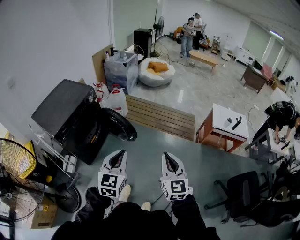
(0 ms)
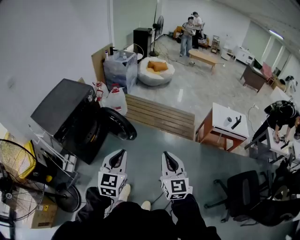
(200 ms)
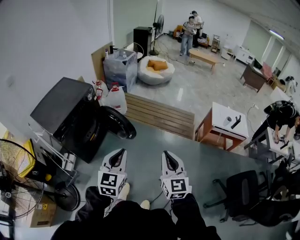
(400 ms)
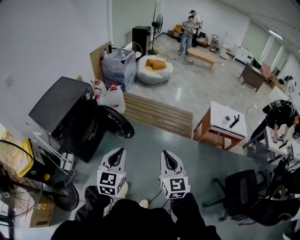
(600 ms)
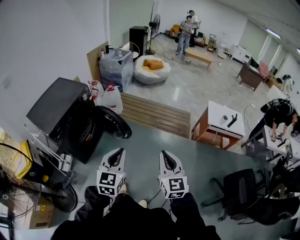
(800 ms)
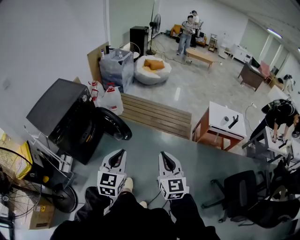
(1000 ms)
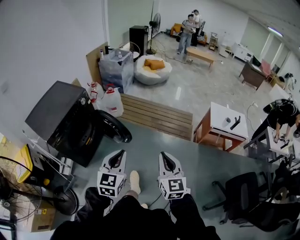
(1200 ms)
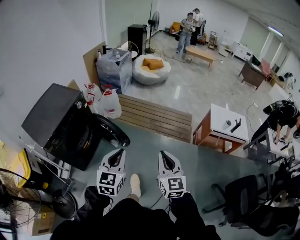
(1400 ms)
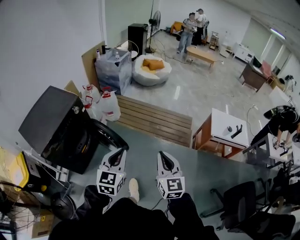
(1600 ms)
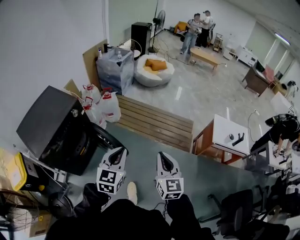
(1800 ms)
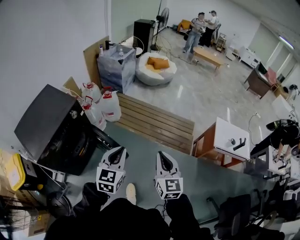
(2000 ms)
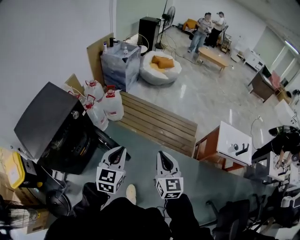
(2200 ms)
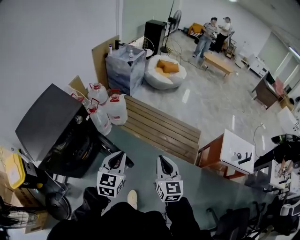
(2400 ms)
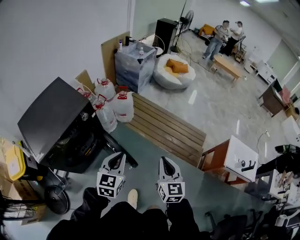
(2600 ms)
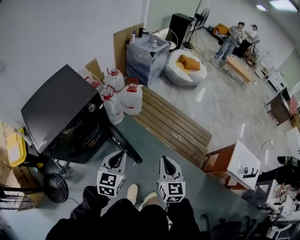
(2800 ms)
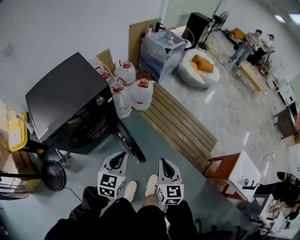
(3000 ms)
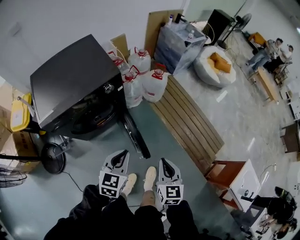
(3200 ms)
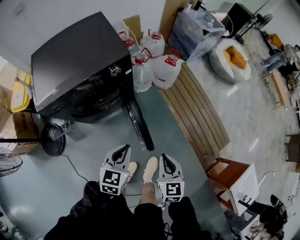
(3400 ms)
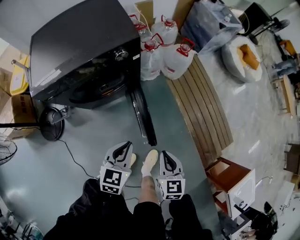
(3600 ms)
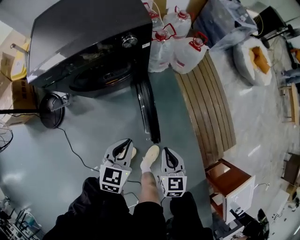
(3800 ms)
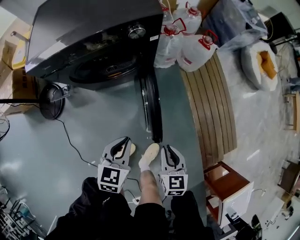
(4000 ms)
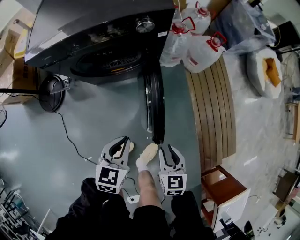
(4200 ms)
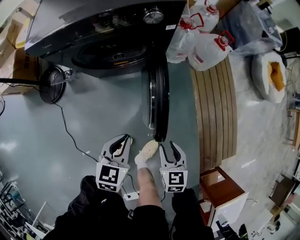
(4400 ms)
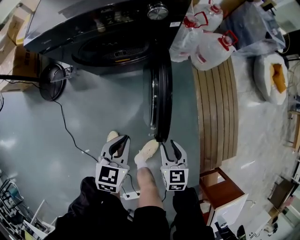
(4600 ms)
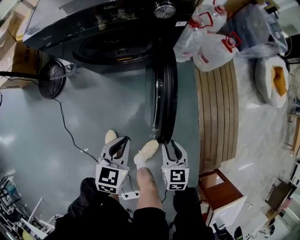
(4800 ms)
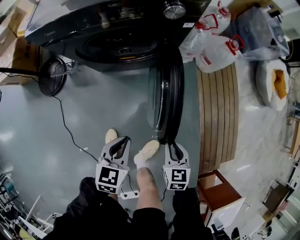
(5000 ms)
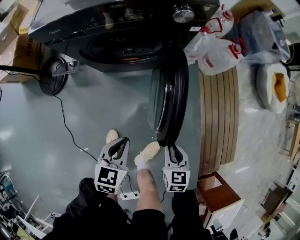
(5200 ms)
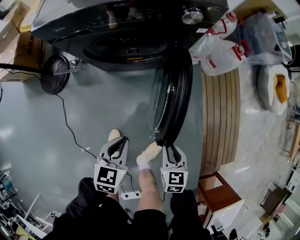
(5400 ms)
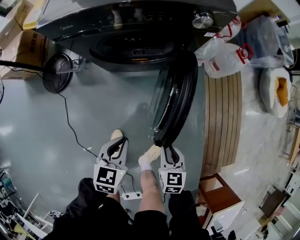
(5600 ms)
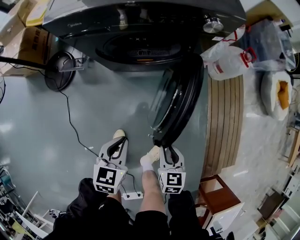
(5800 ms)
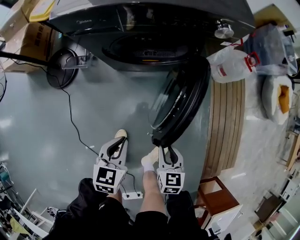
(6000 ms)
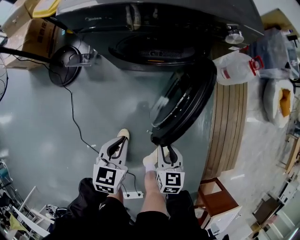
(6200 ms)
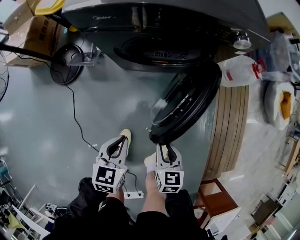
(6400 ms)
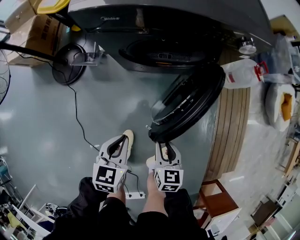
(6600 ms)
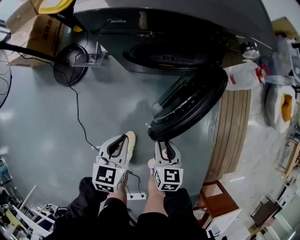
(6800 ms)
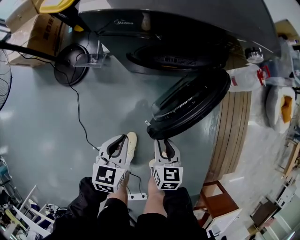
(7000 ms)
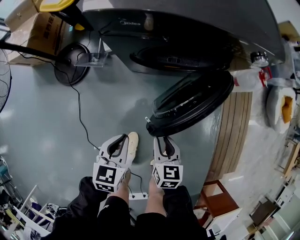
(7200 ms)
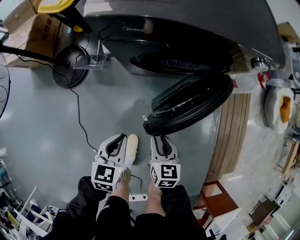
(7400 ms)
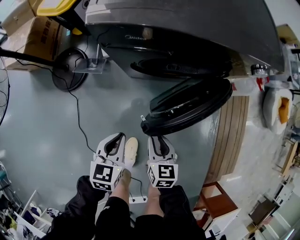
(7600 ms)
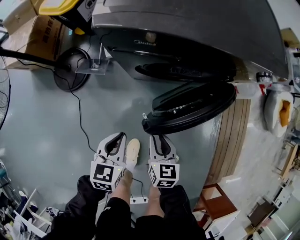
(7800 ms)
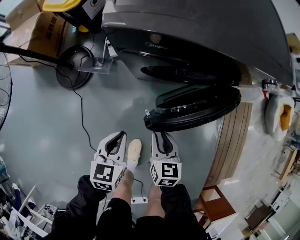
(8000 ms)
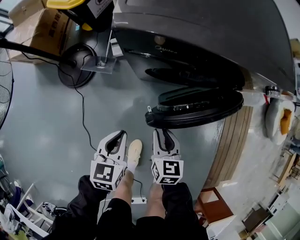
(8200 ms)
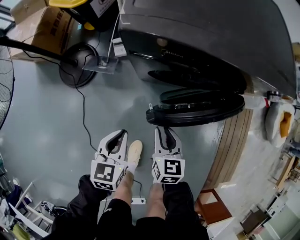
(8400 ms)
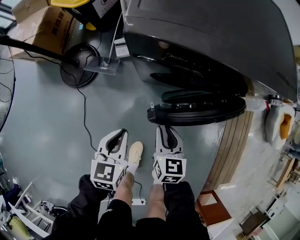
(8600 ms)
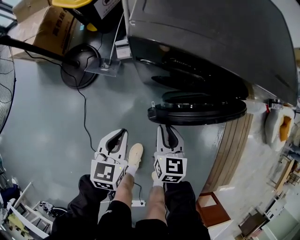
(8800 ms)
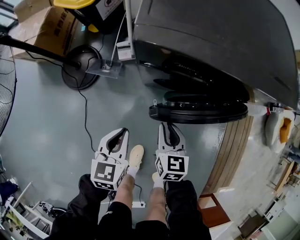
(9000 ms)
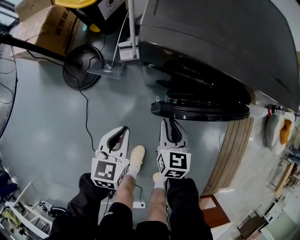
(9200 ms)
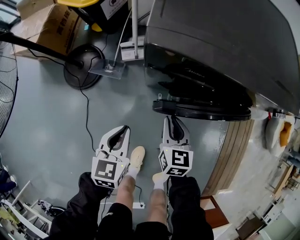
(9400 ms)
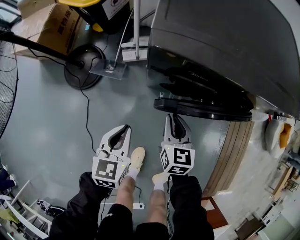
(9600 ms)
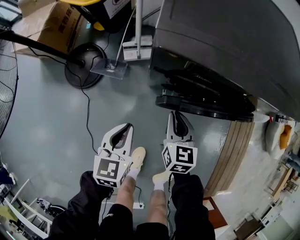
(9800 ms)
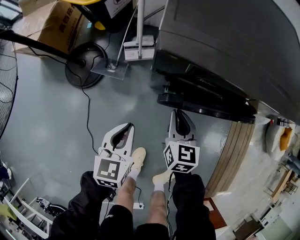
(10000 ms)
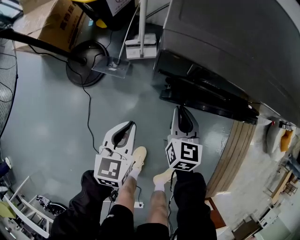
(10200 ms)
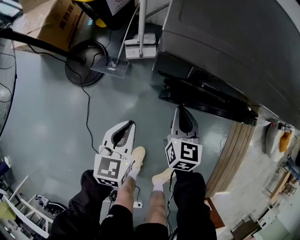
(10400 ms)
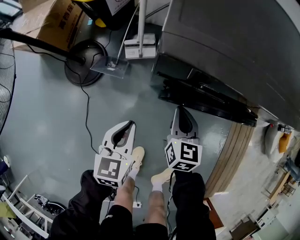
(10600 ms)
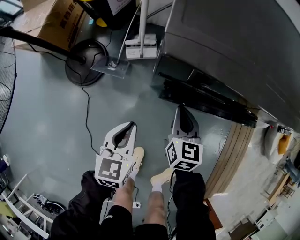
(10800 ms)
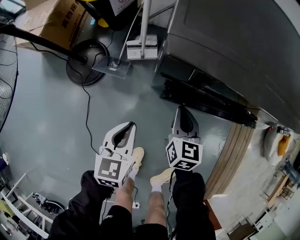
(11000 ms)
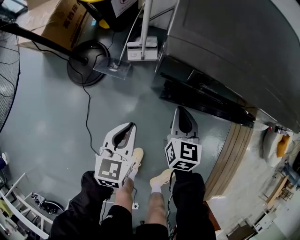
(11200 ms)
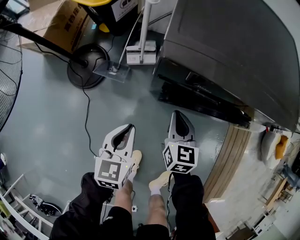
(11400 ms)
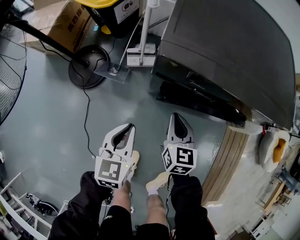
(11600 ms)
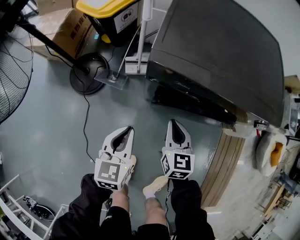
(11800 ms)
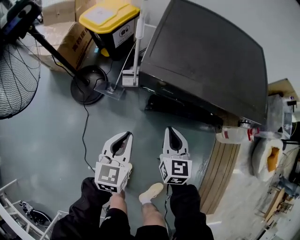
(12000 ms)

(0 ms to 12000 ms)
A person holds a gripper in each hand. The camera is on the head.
0 ms - 1600 ms: Both grippers move forward, about 20 cm.
1600 ms - 3000 ms: The two grippers go about 35 cm forward, to the left and downward. The left gripper swivels roughly 30 degrees. The right gripper changes its angle by some 20 degrees.
3000 ms - 4400 ms: Both grippers travel together downward, approximately 35 cm. The left gripper rotates approximately 40 degrees; the right gripper turns by roughly 40 degrees, and opens.
4400 ms - 6000 ms: The grippers both shift to the left by approximately 15 cm.
6000 ms - 7600 ms: Both grippers travel together to the left and forward, some 20 cm.
7600 ms - 9000 ms: The left gripper heads to the left and forward, covering approximately 10 cm. Meanwhile the right gripper is displaced forward and to the left by some 15 cm.
9000 ms - 10400 ms: The left gripper is displaced forward by some 5 cm, while the right gripper moves forward, about 10 cm.
10400 ms - 12000 ms: The two grippers go some 15 cm upward.

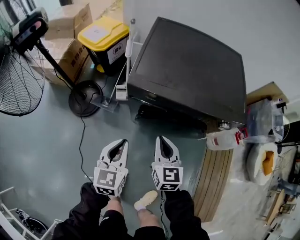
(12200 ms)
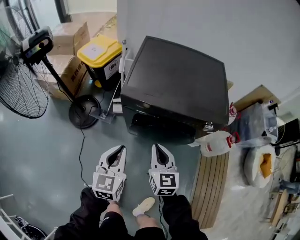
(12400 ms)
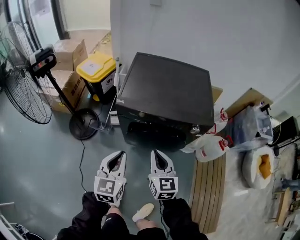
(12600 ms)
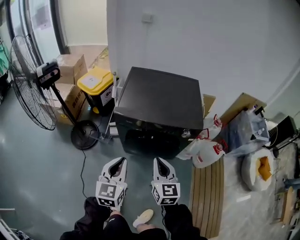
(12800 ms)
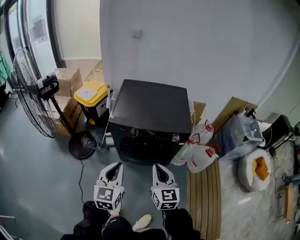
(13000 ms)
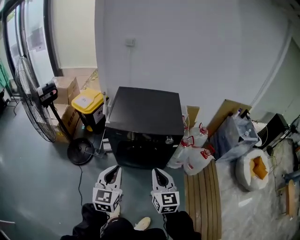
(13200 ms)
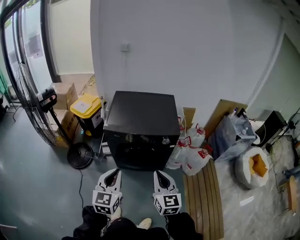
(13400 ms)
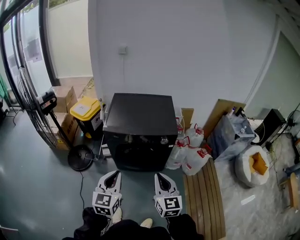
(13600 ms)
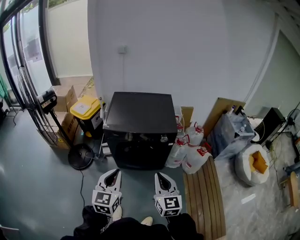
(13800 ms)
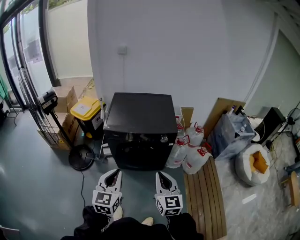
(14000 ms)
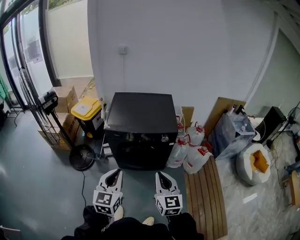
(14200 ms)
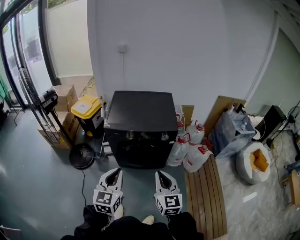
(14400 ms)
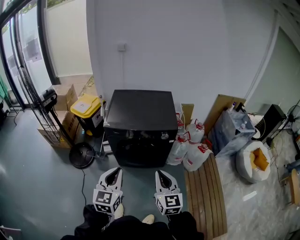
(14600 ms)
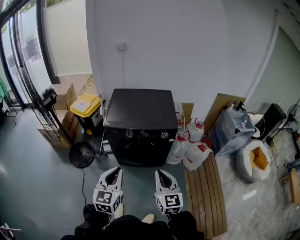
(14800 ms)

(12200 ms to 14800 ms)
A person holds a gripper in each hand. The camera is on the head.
12200 ms - 13400 ms: The grippers both shift upward, backward and to the right by approximately 40 cm.
13400 ms - 14800 ms: The grippers make only small movements.

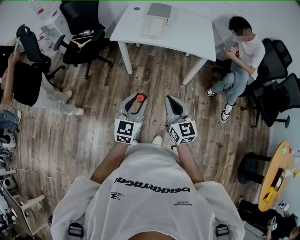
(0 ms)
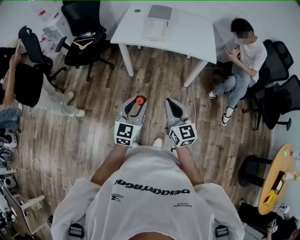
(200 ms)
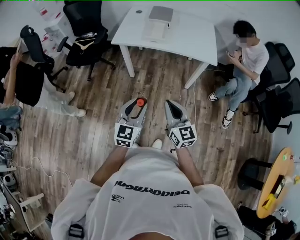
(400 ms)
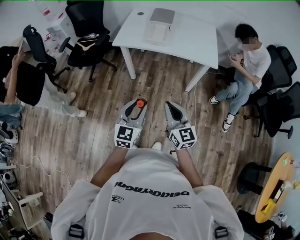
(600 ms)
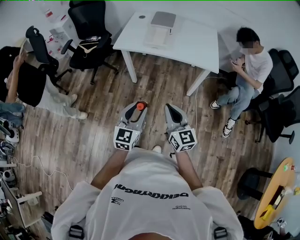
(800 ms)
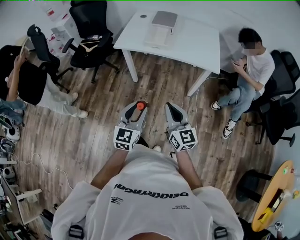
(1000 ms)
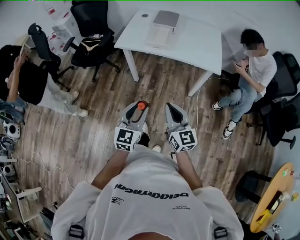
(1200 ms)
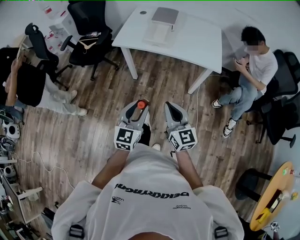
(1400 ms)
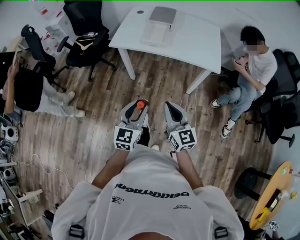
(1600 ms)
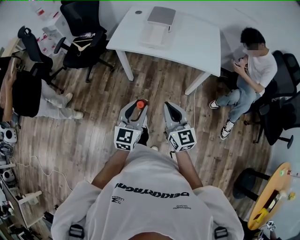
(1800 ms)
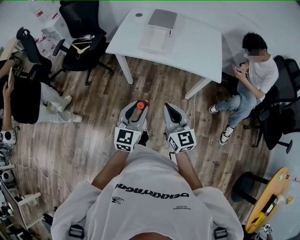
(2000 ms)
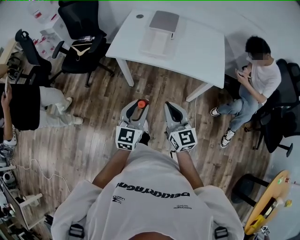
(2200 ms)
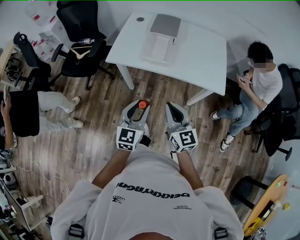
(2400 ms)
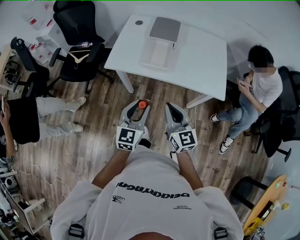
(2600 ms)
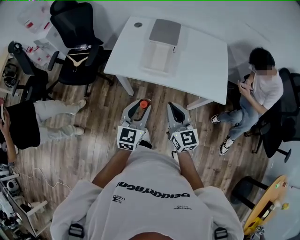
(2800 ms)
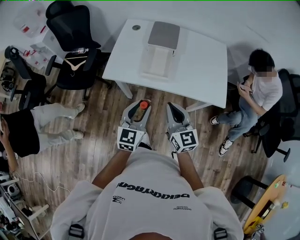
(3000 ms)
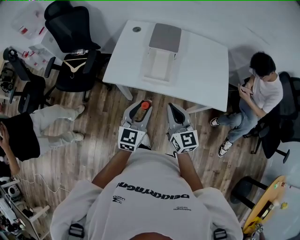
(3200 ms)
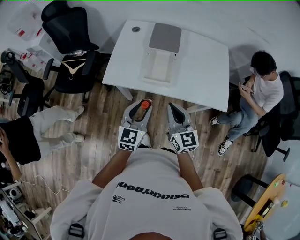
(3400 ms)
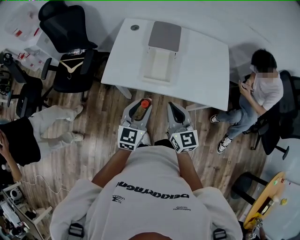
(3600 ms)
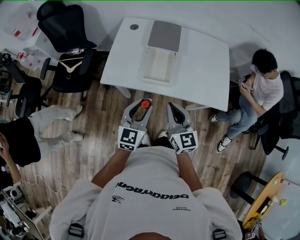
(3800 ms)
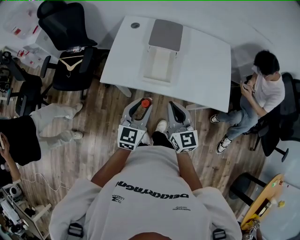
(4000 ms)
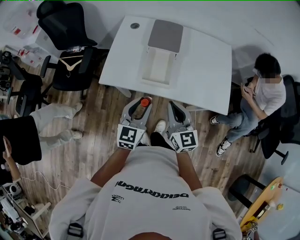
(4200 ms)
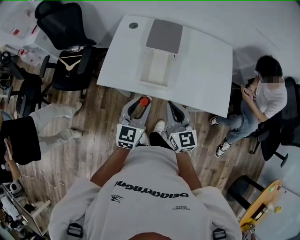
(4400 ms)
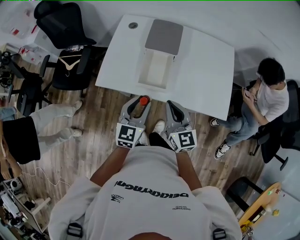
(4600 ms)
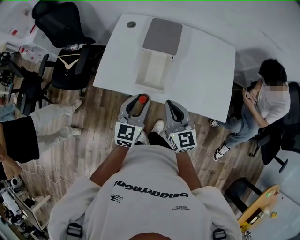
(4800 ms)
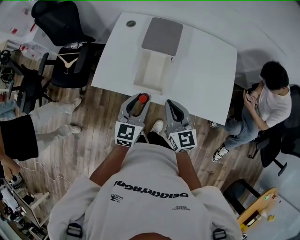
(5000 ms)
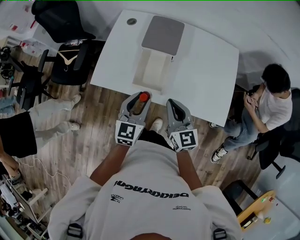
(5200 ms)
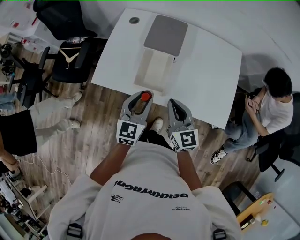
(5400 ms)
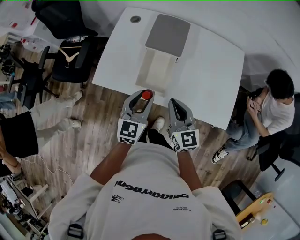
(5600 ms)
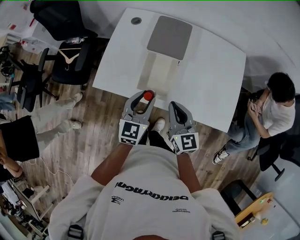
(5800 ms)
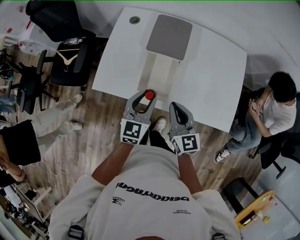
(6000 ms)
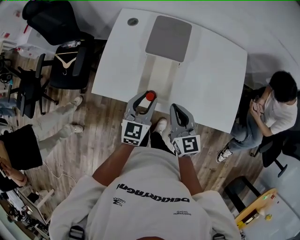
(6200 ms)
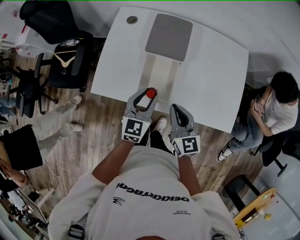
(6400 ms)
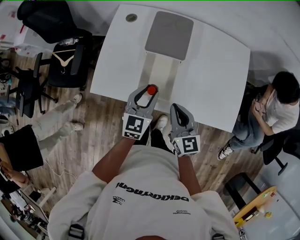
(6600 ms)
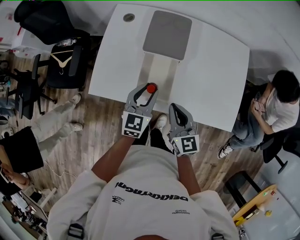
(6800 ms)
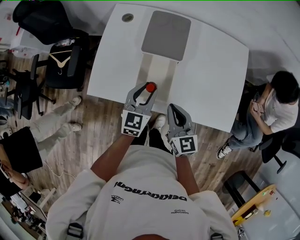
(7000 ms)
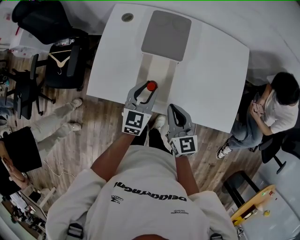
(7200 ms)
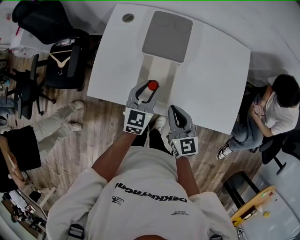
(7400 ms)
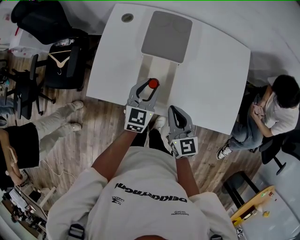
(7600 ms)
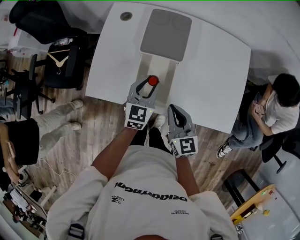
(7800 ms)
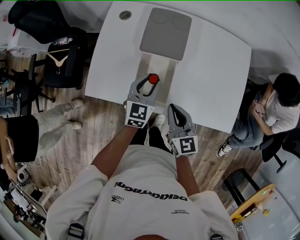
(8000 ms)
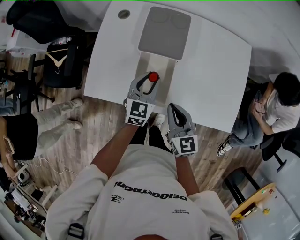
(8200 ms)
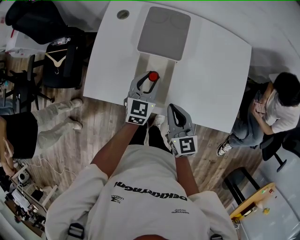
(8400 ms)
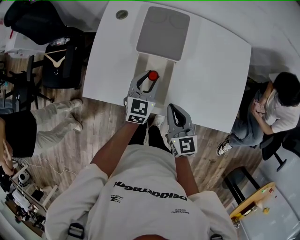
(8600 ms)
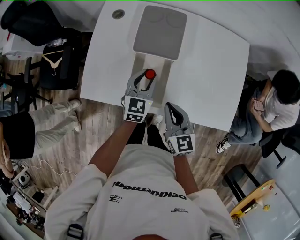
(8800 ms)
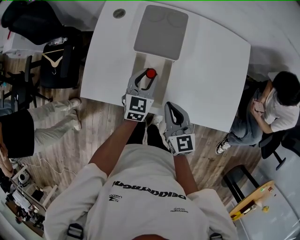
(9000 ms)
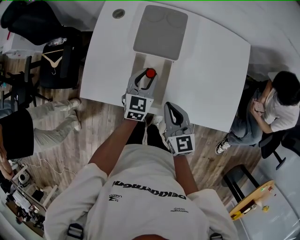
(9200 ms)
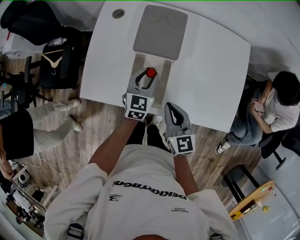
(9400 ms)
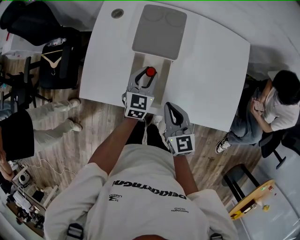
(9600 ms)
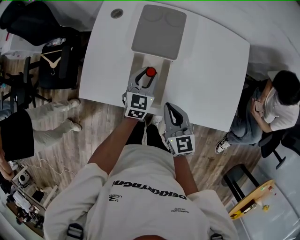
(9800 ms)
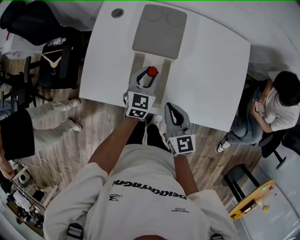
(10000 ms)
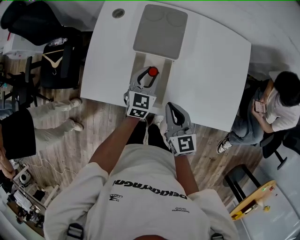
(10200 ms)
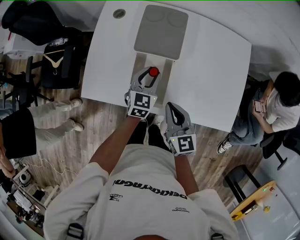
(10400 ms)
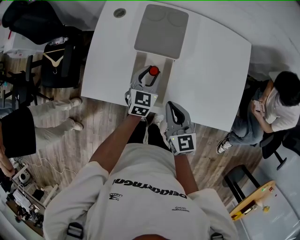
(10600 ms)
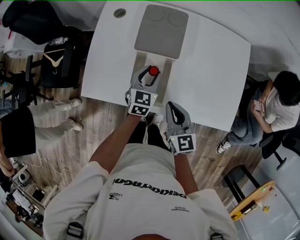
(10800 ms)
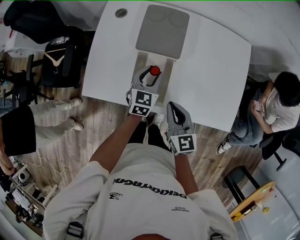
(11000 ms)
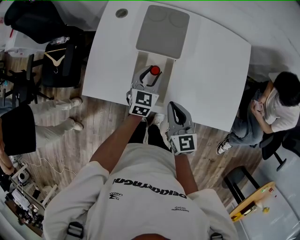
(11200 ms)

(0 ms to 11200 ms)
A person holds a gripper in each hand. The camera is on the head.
0 ms - 1600 ms: Both grippers move forward and to the right, roughly 10 cm.
1600 ms - 3200 ms: Both grippers travel together forward, some 30 cm.
3200 ms - 4800 ms: The grippers both shift forward by approximately 10 cm.
4800 ms - 6400 ms: Both grippers travel together forward and downward, about 10 cm.
6400 ms - 8000 ms: The left gripper shifts approximately 5 cm forward.
8000 ms - 9600 ms: The left gripper shifts by roughly 5 cm.
9600 ms - 11200 ms: Neither gripper changes place.
